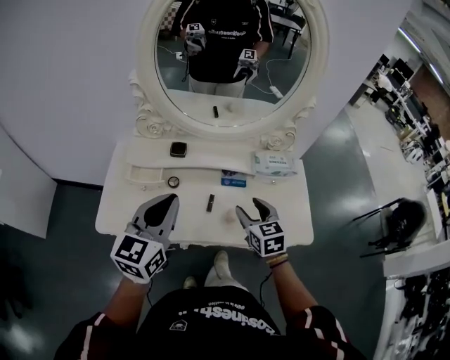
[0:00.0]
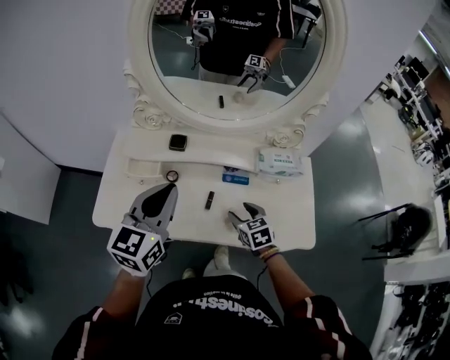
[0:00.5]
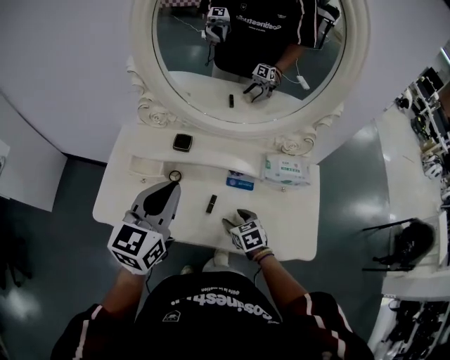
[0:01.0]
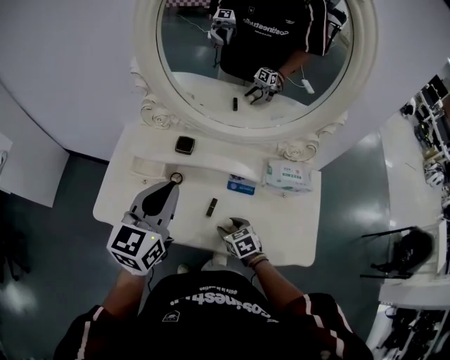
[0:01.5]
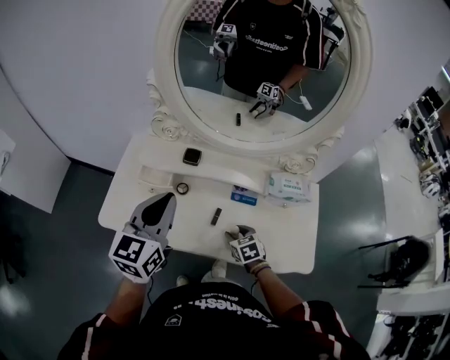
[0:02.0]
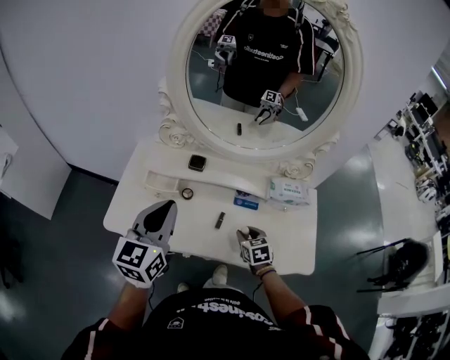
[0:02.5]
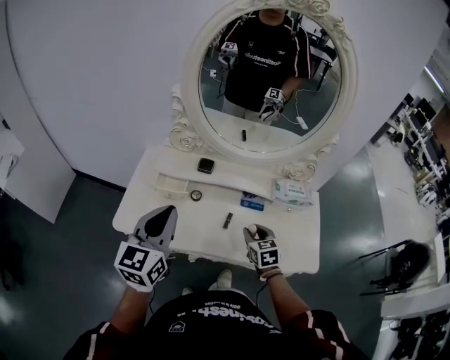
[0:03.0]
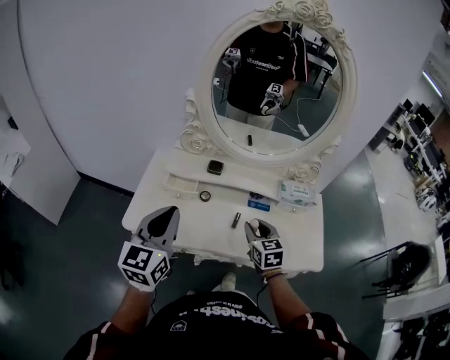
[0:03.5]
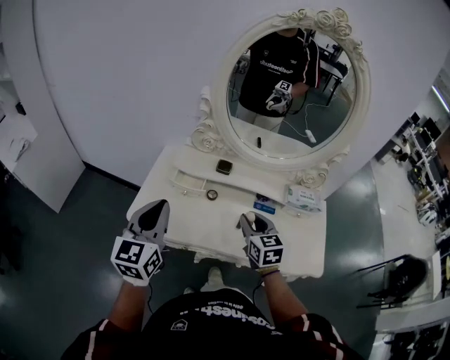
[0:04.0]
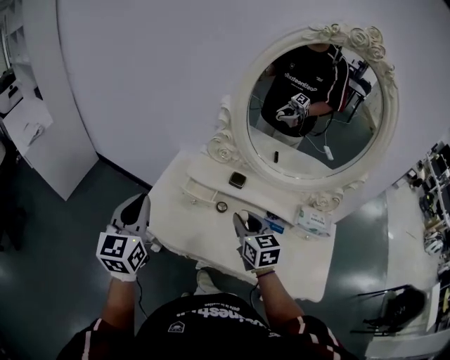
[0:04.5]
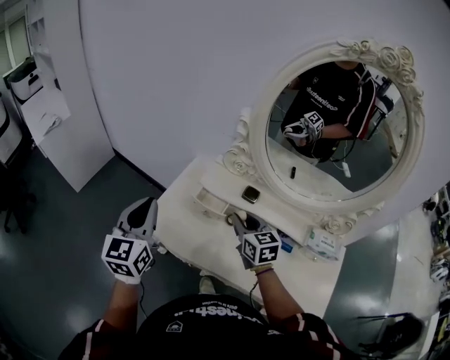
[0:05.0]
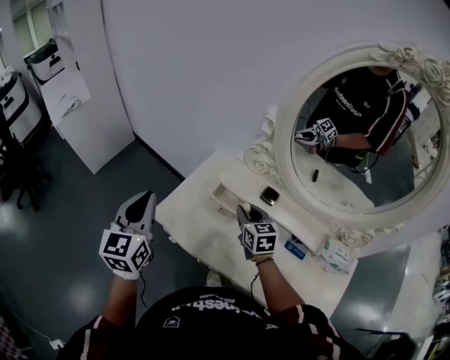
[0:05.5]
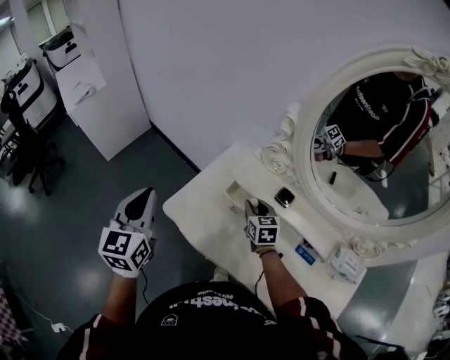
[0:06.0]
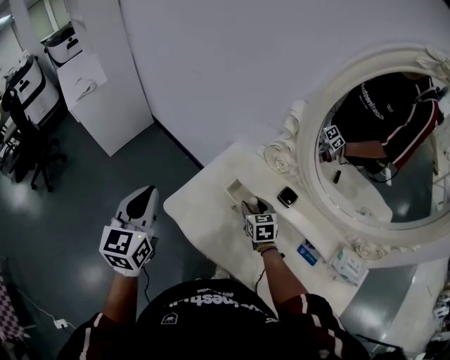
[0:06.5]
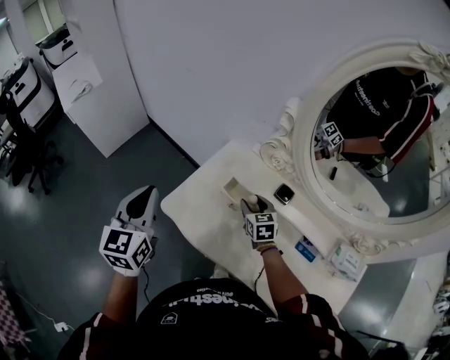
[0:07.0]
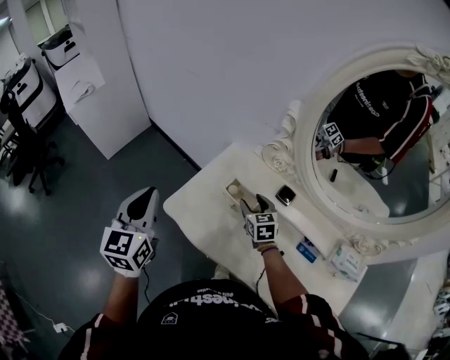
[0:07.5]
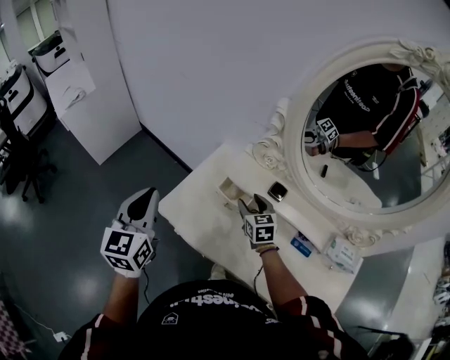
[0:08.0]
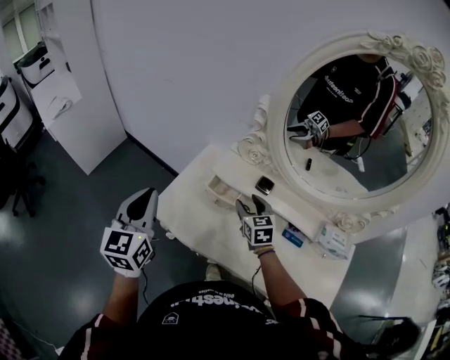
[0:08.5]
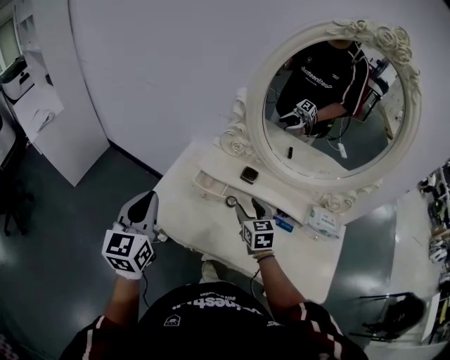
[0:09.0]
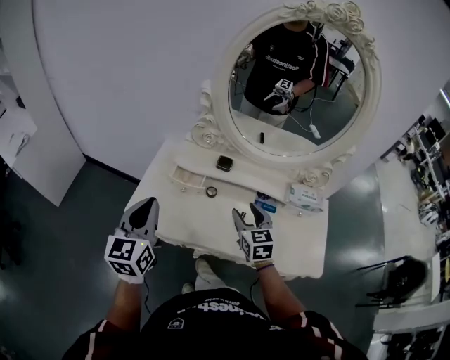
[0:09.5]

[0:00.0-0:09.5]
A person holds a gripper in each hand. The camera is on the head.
0.0 to 2.0 s: The left gripper shifts about 5 cm forward, while the right gripper goes some 15 cm downward, and rotates some 30 degrees.
2.0 to 4.0 s: The right gripper shifts approximately 25 cm upward and to the left, and changes its angle by some 30 degrees; the left gripper moves to the left and backward, approximately 15 cm.
4.0 to 5.5 s: The right gripper changes place by roughly 20 cm, and rotates roughly 20 degrees; the left gripper ends up approximately 15 cm from where it was, and turns by about 30 degrees.
5.5 to 7.5 s: The right gripper is displaced downward by roughly 5 cm, and opens up.
7.5 to 9.5 s: The left gripper ends up roughly 10 cm from where it was, and rotates about 30 degrees. The right gripper moves about 25 cm, and rotates some 30 degrees.

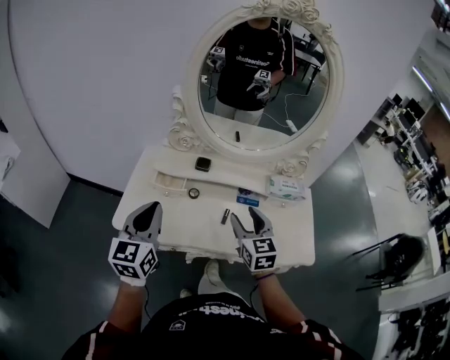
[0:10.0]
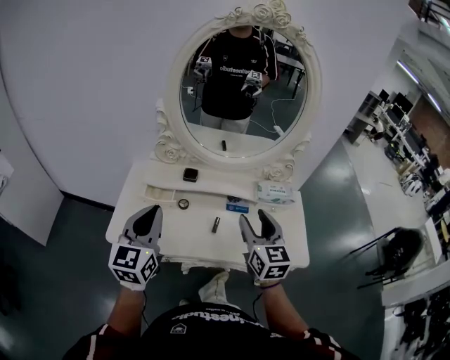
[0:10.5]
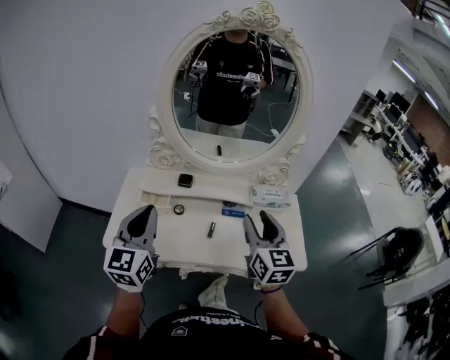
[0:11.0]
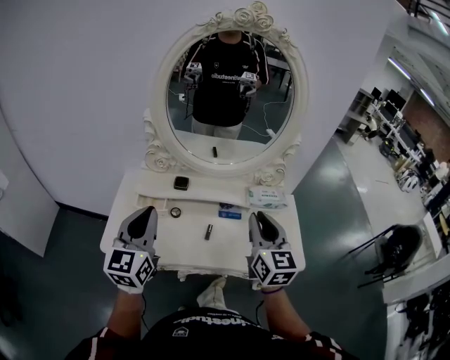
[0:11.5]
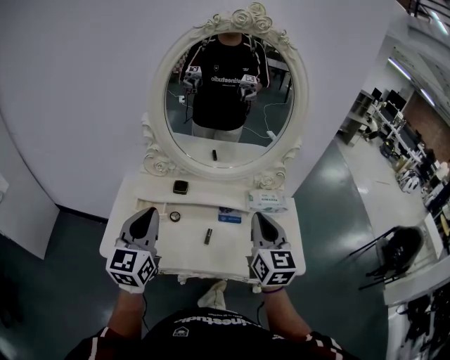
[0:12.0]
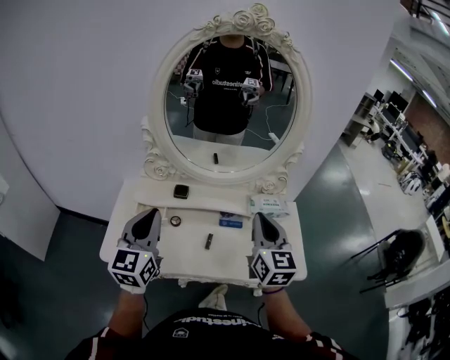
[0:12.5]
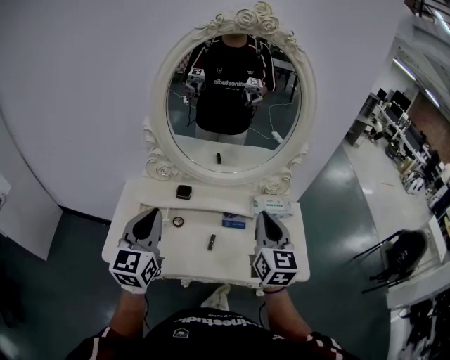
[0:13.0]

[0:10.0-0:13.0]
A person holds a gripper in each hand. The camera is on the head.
10.0 to 11.5 s: The left gripper moves upward and to the right, about 10 cm. The right gripper shifts approximately 15 cm upward and to the right, and closes up.
11.5 to 13.0 s: The right gripper shifts about 5 cm forward.

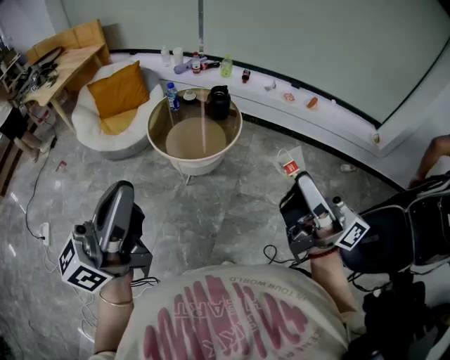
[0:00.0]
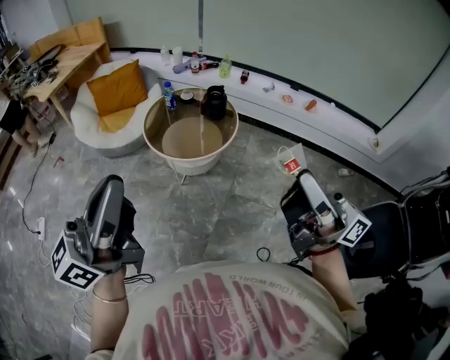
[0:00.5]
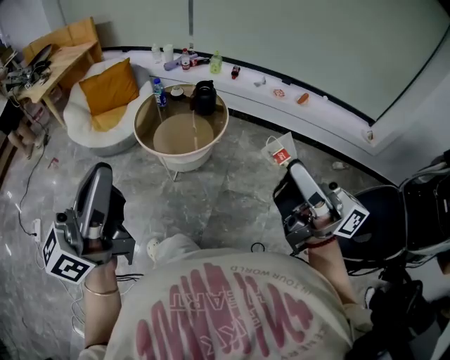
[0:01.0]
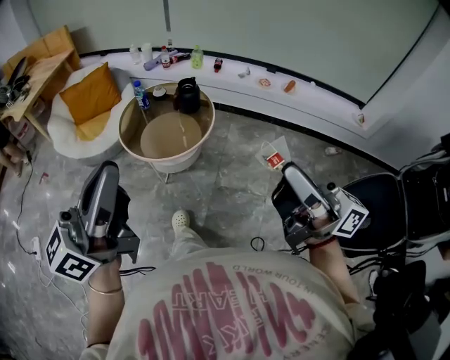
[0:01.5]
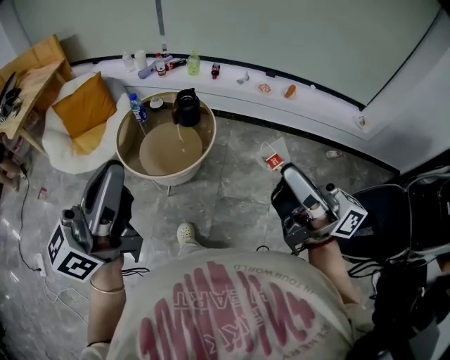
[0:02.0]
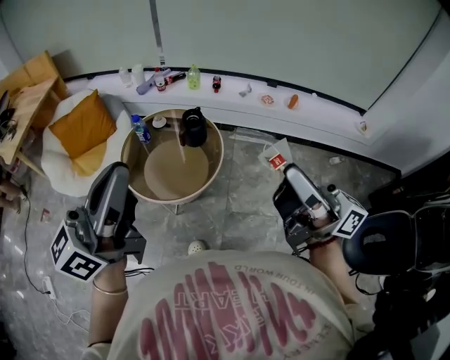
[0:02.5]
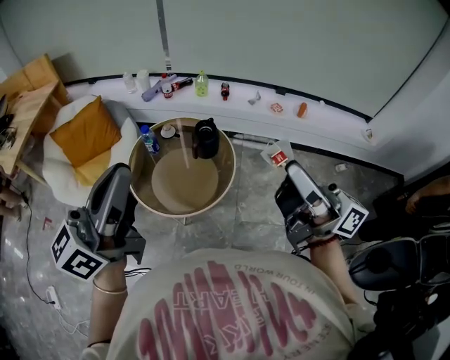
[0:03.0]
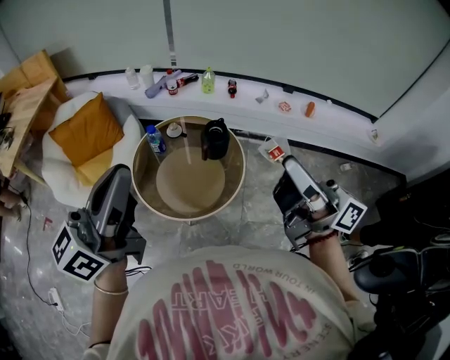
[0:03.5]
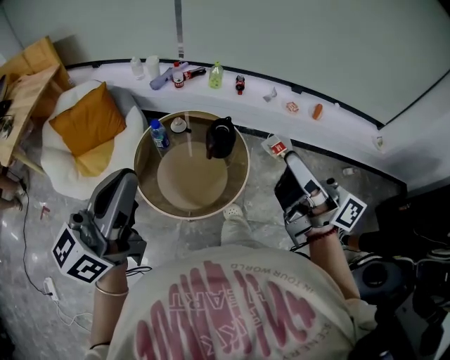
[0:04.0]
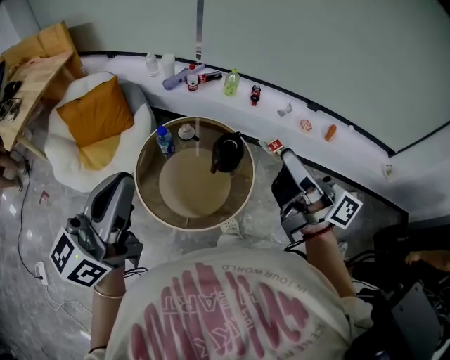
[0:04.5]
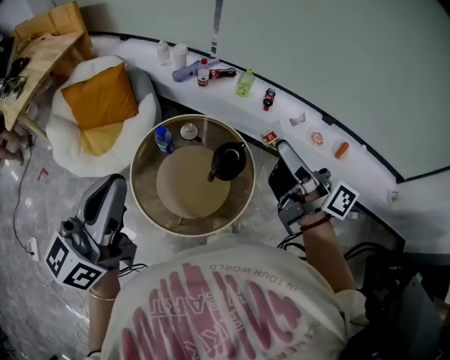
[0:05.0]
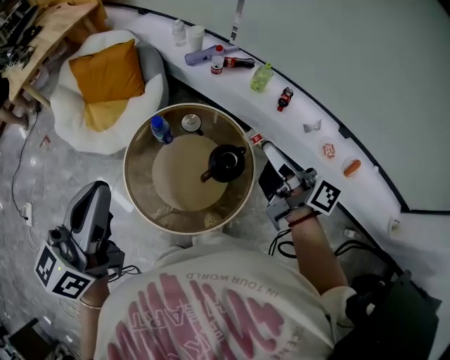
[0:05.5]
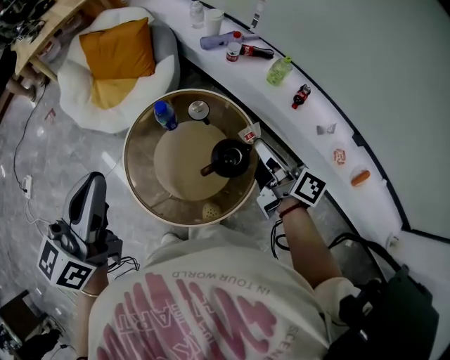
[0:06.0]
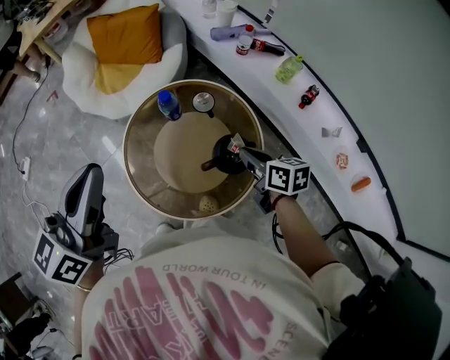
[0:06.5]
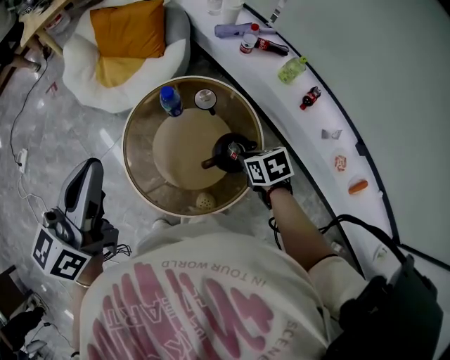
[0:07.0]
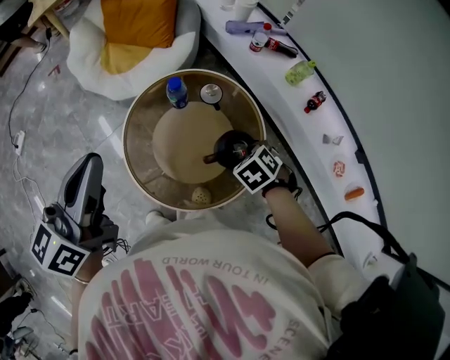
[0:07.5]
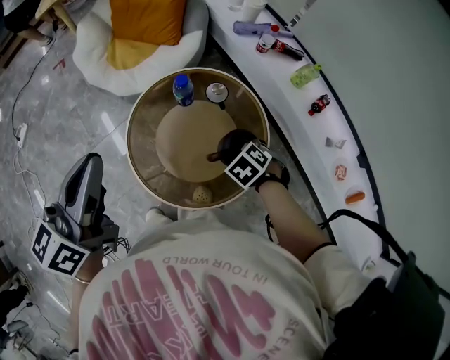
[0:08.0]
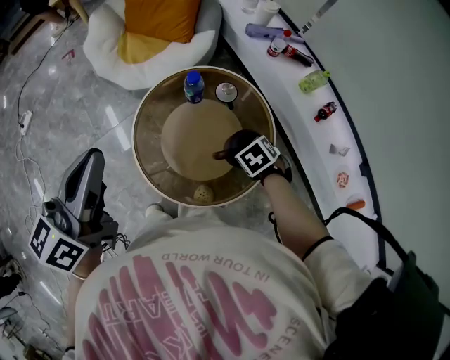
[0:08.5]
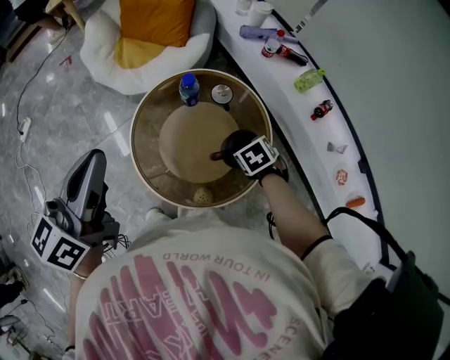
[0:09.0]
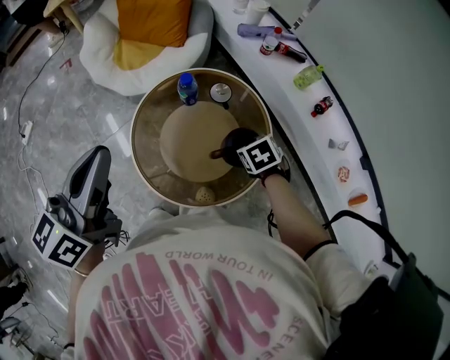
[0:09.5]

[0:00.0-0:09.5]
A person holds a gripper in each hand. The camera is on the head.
0.0 to 2.0 s: The right gripper goes roughly 10 cm to the right and forward, while the left gripper moves forward and to the right, some 15 cm.
2.0 to 4.0 s: Both grippers move forward and to the left, some 30 cm.
4.0 to 5.5 s: The left gripper is displaced forward by some 15 cm, and changes its angle by some 30 degrees. The right gripper heads forward and downward, covering about 35 cm, and changes its angle by some 30 degrees.
5.5 to 7.5 s: The right gripper shifts about 25 cm downward, and angles its fingers downward, by approximately 80 degrees. The left gripper heads downward, covering some 5 cm, and swivels approximately 20 degrees.
7.5 to 9.5 s: The grippers stay close to where they were, moving slightly.

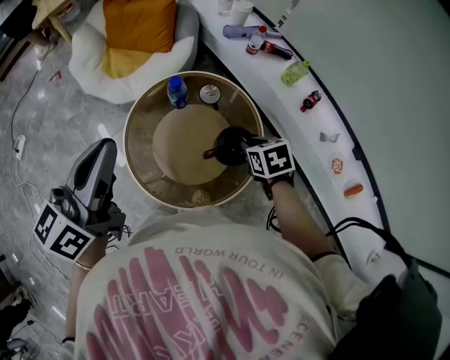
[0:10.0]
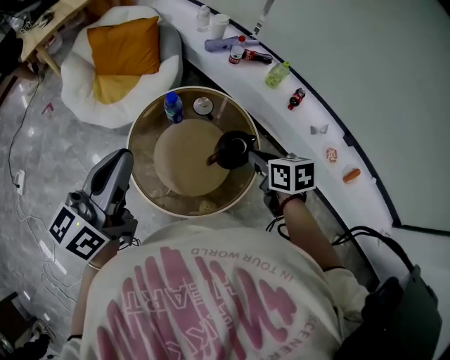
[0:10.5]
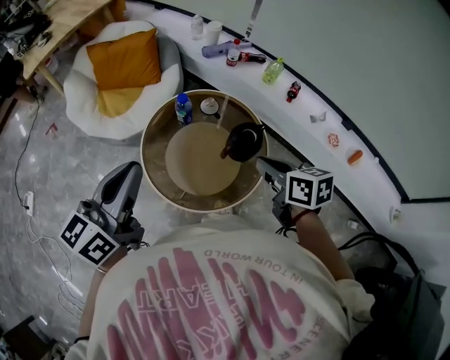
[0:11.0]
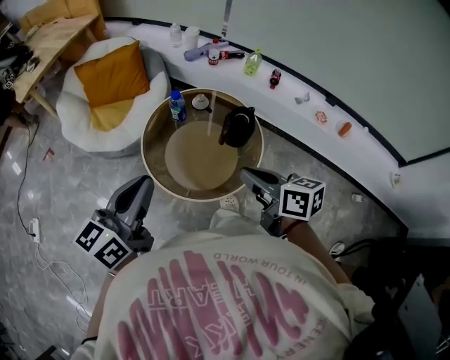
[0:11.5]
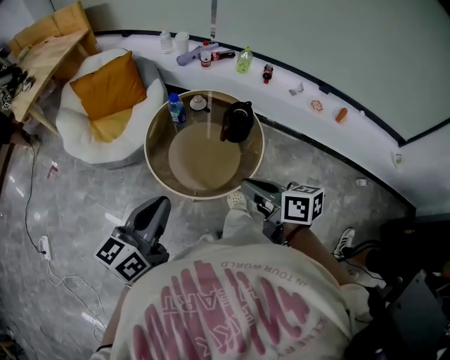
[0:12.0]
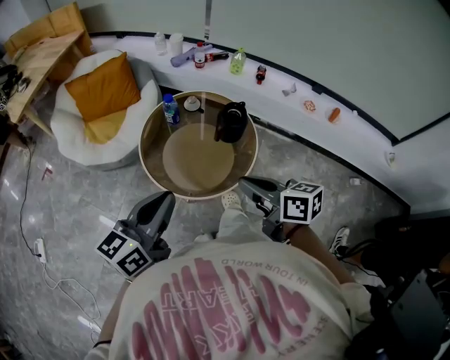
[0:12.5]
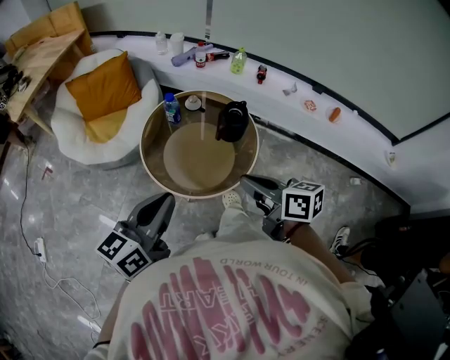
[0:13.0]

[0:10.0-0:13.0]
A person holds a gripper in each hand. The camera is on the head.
10.0 to 11.5 s: The right gripper is displaced backward, upward and to the left by approximately 35 cm, and tips its fingers upward by approximately 40 degrees. Meanwhile the left gripper shifts roughly 15 cm backward and to the left, and turns by some 30 degrees.
11.5 to 13.0 s: Both grippers travel together backward, roughly 5 cm.

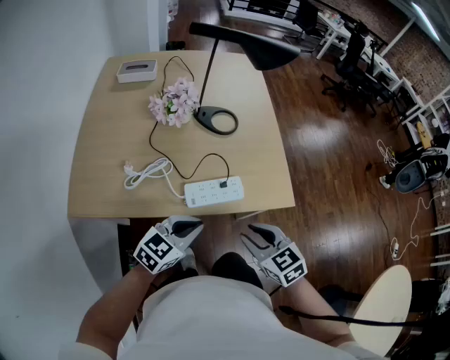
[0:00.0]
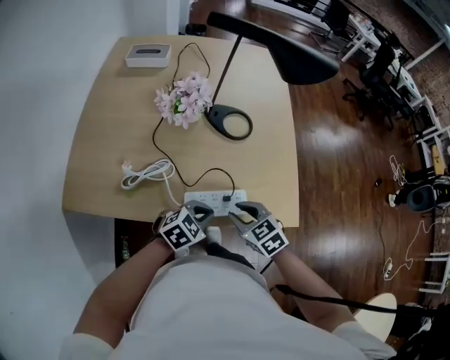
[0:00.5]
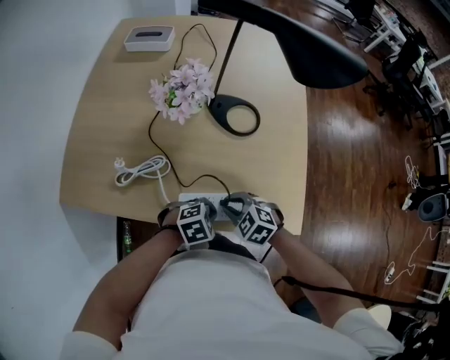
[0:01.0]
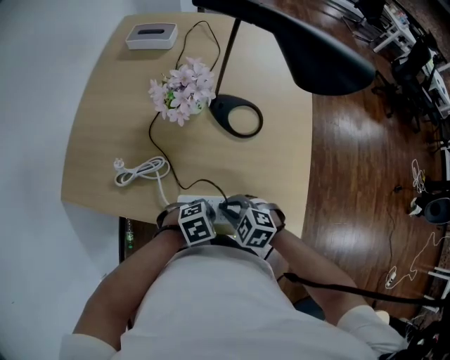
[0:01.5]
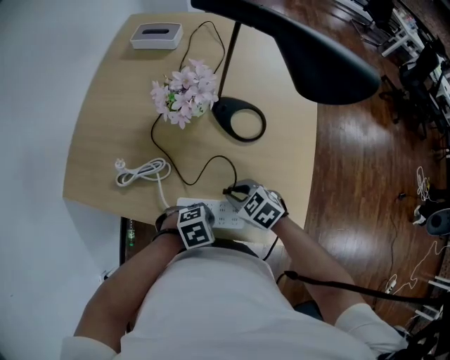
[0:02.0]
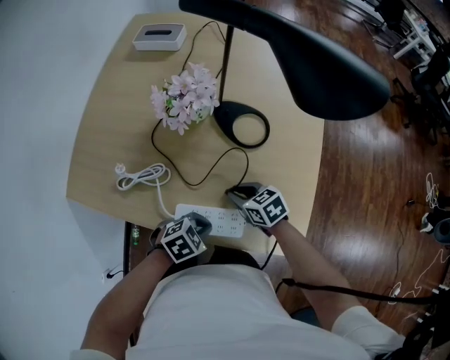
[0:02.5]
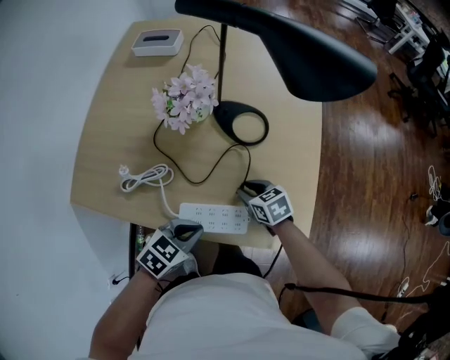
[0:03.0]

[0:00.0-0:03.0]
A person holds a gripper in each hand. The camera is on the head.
0.0 to 1.5 s: The right gripper shifts by approximately 25 cm, and swivels some 50 degrees, while the left gripper goes approximately 15 cm downward, and tilts its fingers approximately 40 degrees downward.
1.5 to 3.0 s: The right gripper ends up roughly 10 cm from where it was, and rolls clockwise, seen from behind, by approximately 40 degrees, while the left gripper is displaced upward by approximately 10 cm, and turns by some 30 degrees.
